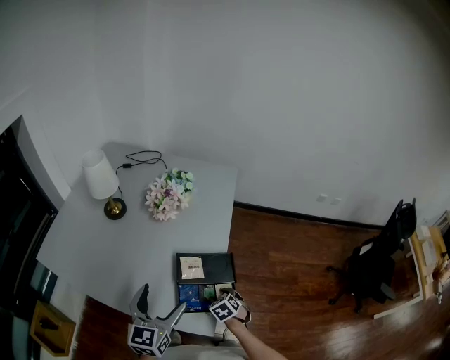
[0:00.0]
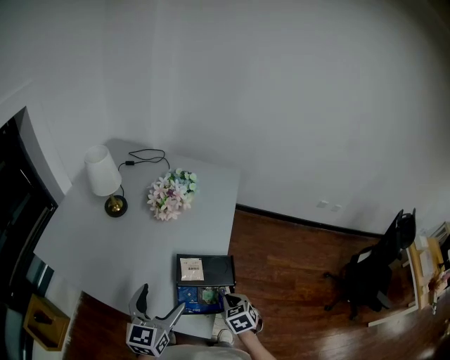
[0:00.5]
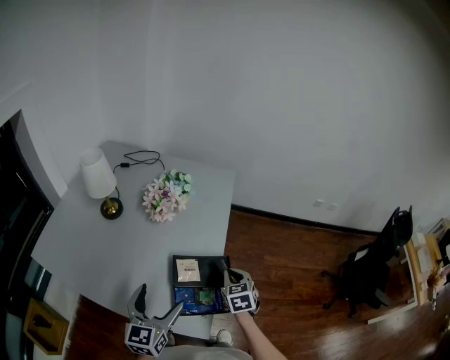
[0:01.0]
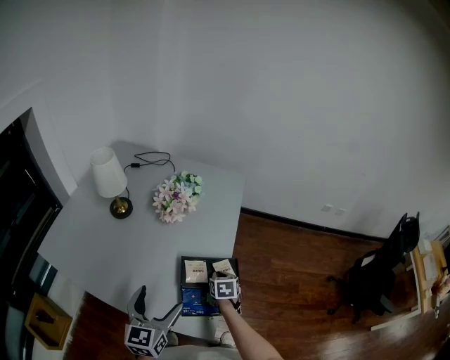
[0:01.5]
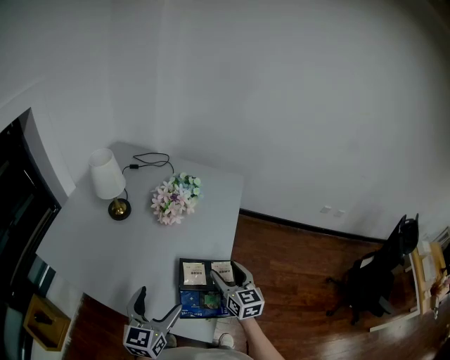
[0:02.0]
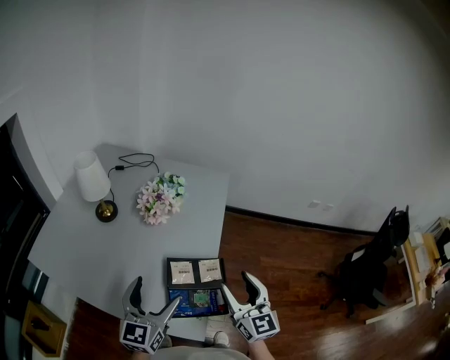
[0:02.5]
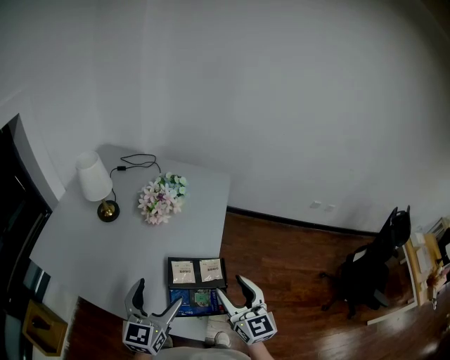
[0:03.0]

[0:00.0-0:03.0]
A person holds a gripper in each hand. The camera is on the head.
0:00.0 to 0:01.5: The right gripper goes roughly 10 cm forward, travels upward and back again, roughly 15 cm each way, rotates roughly 30 degrees, and closes.
0:01.5 to 0:03.0: The right gripper goes some 25 cm upward and backward, angles its fingers upward, by approximately 50 degrees, and opens its fingers, while the left gripper shifts by some 5 cm.

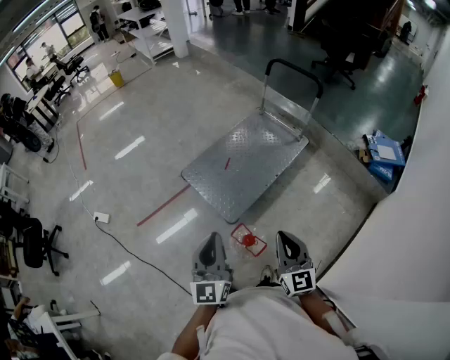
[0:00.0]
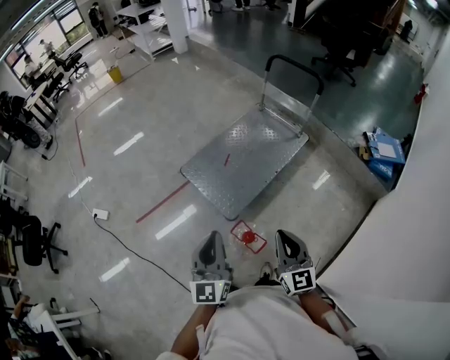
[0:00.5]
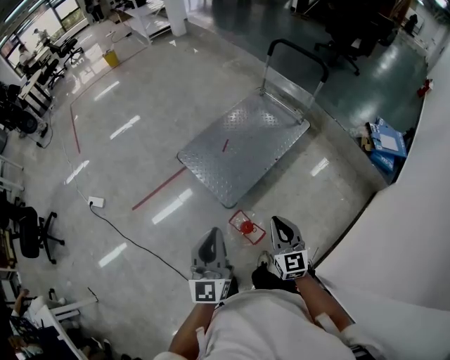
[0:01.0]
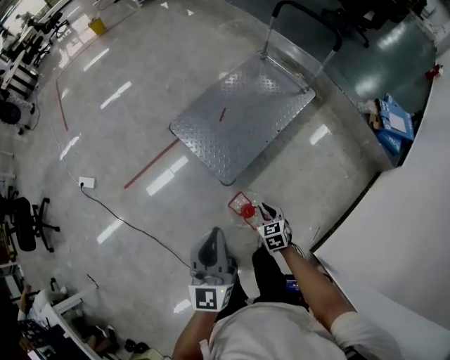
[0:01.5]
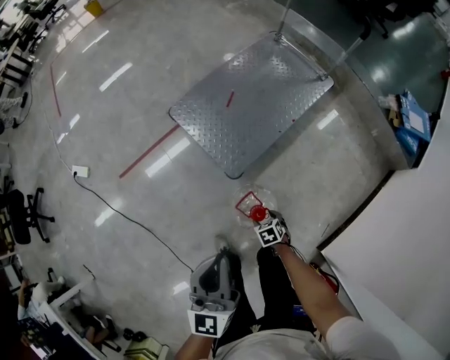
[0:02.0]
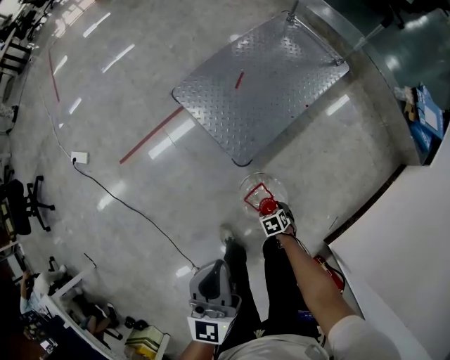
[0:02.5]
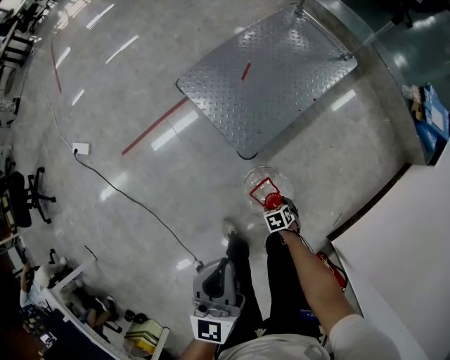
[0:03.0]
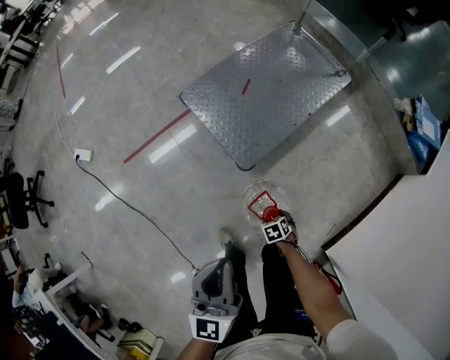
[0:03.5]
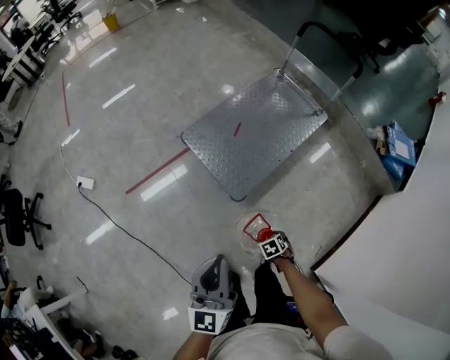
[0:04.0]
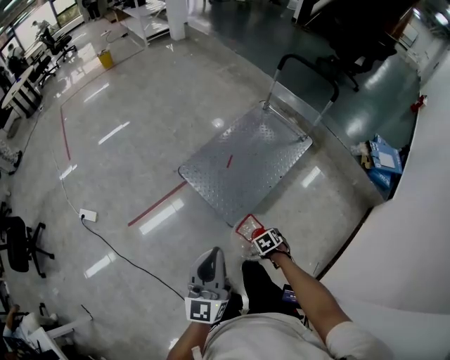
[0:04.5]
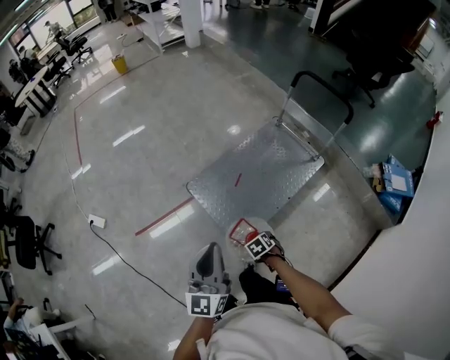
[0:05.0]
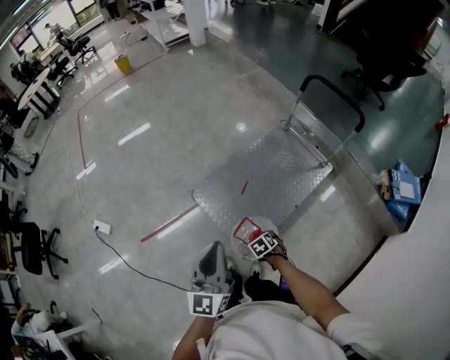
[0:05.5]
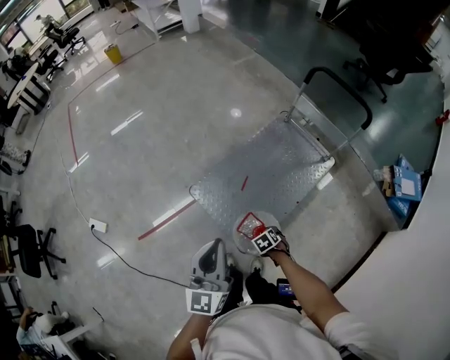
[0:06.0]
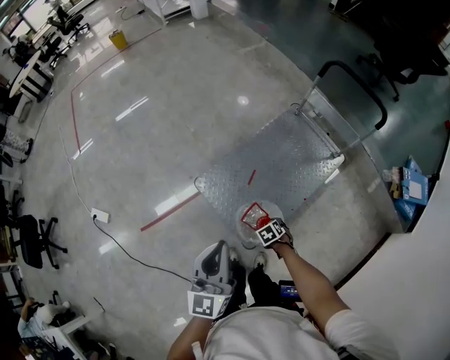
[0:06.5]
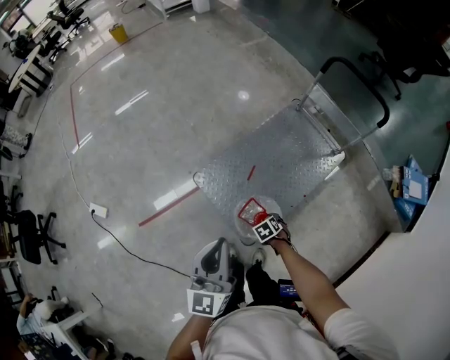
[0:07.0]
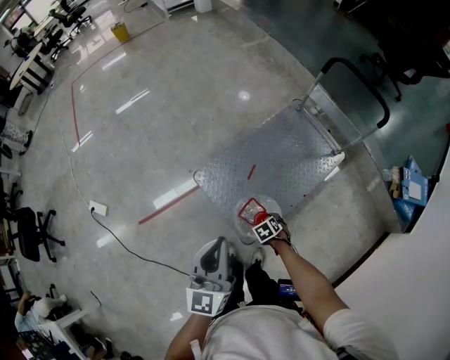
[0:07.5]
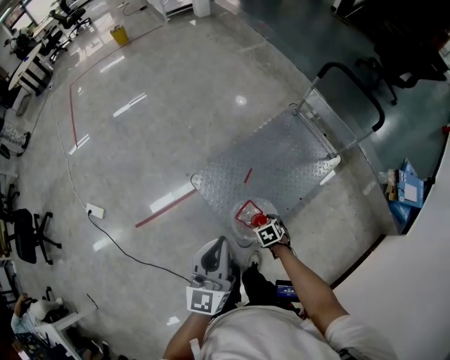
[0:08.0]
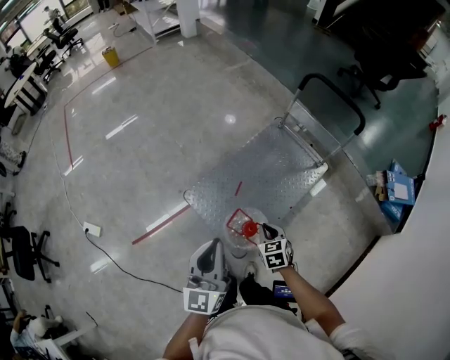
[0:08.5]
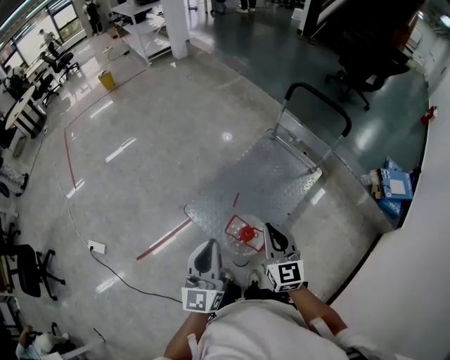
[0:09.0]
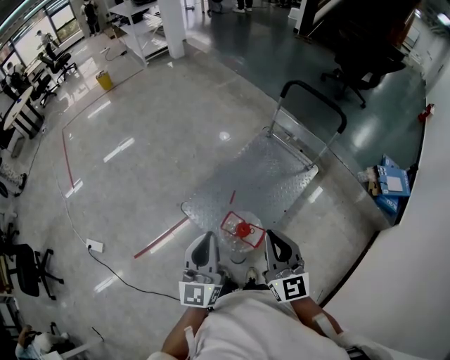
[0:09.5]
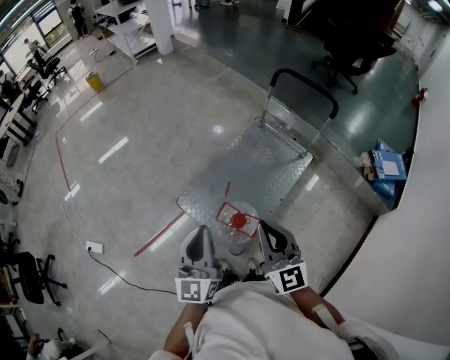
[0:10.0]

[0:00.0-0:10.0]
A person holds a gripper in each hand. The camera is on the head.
0:00.0 to 0:02.0: The right gripper is displaced downward by approximately 50 cm, angles its fingers downward, by about 70 degrees, and opens up. The left gripper is displaced downward by some 15 cm.
0:02.0 to 0:04.0: The right gripper moves upward, about 5 cm. Meanwhile the left gripper changes place by about 10 cm.
0:04.0 to 0:06.0: The right gripper shifts by roughly 35 cm. Meanwhile the left gripper changes place by about 35 cm.
0:06.0 to 0:08.0: The right gripper changes place by approximately 5 cm.
0:08.0 to 0:10.0: The right gripper shifts roughly 40 cm upward, tilts its fingers approximately 70 degrees upward, and closes its fingers; the left gripper goes roughly 5 cm upward.

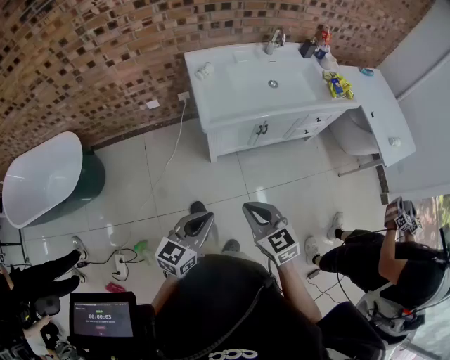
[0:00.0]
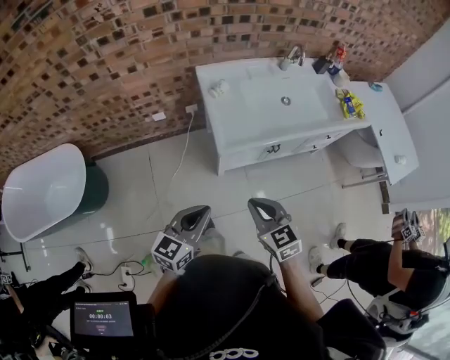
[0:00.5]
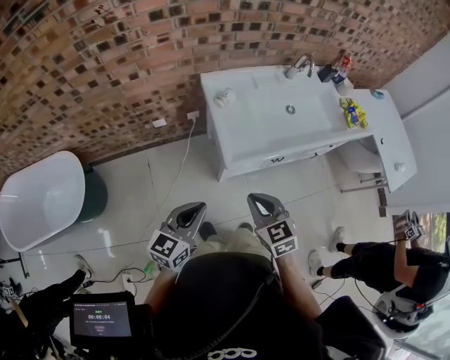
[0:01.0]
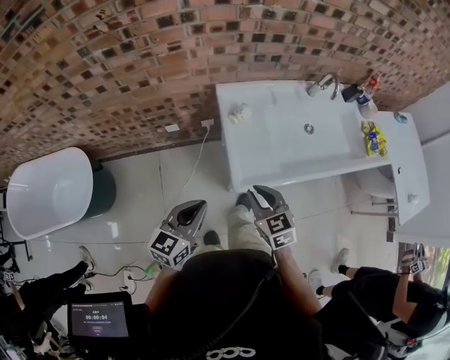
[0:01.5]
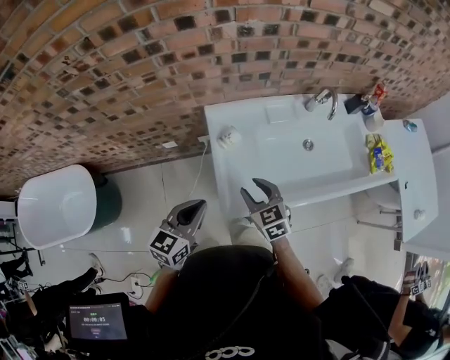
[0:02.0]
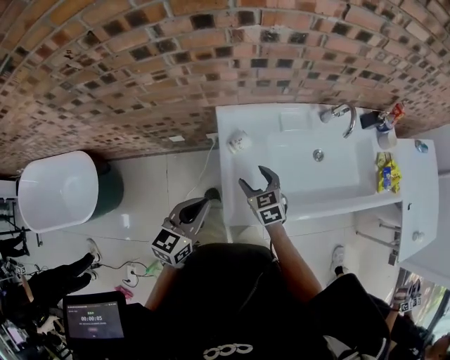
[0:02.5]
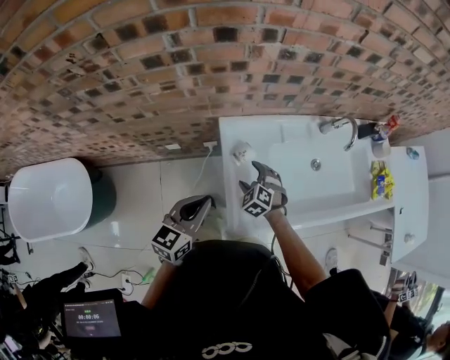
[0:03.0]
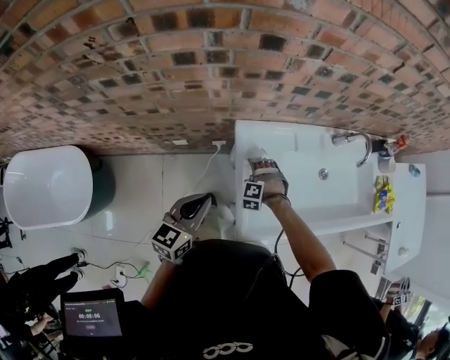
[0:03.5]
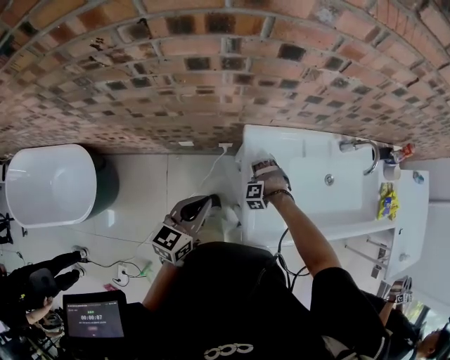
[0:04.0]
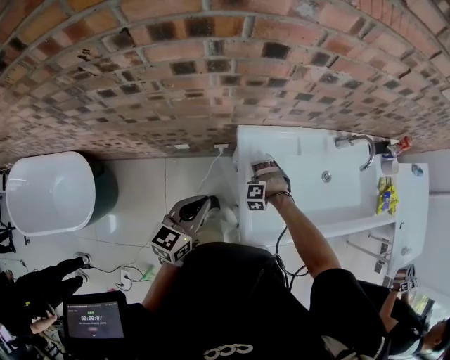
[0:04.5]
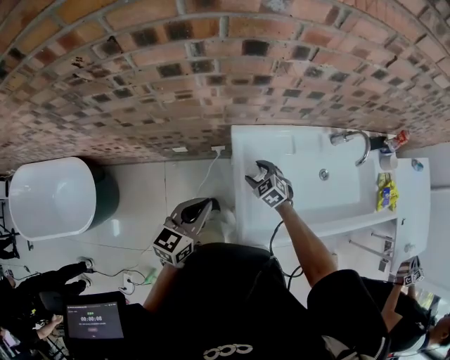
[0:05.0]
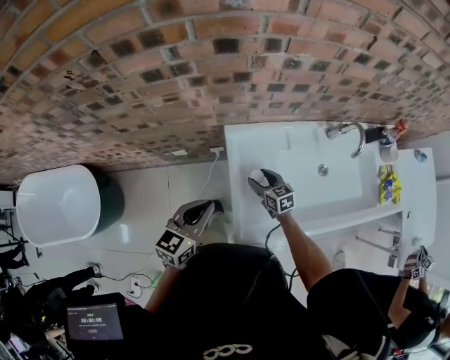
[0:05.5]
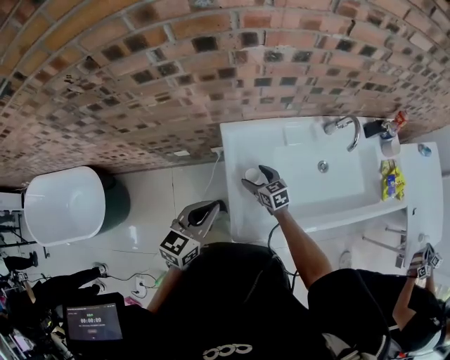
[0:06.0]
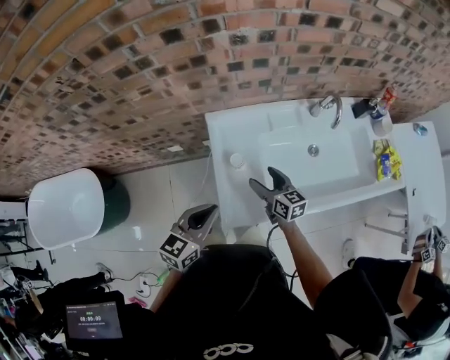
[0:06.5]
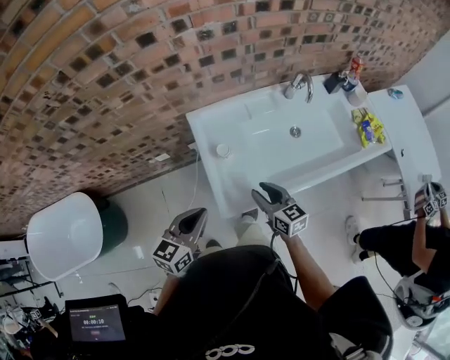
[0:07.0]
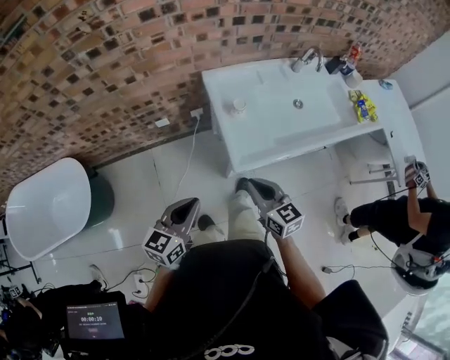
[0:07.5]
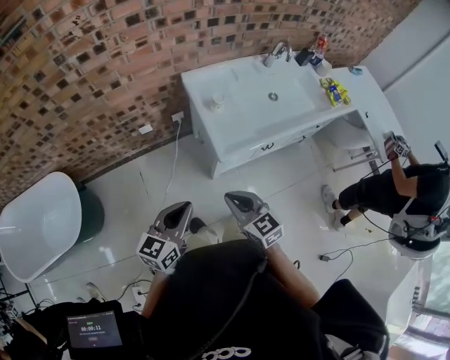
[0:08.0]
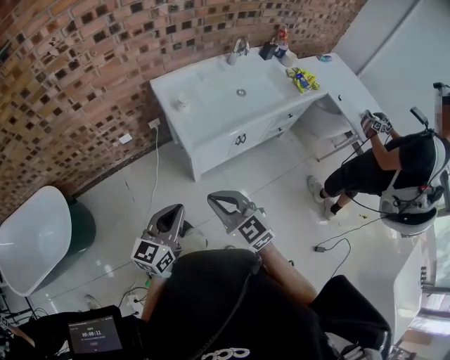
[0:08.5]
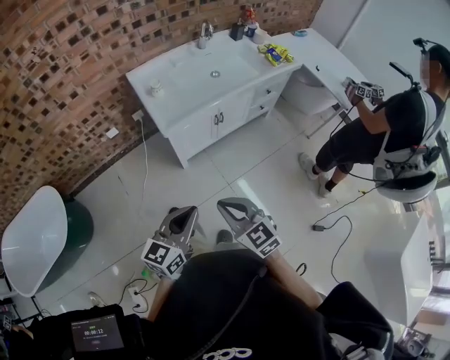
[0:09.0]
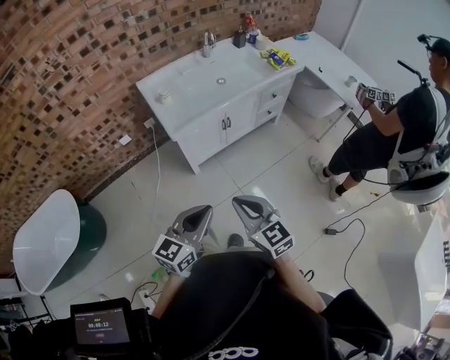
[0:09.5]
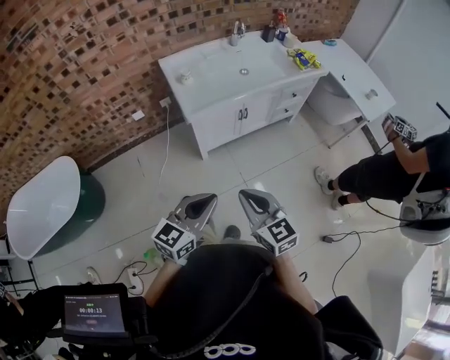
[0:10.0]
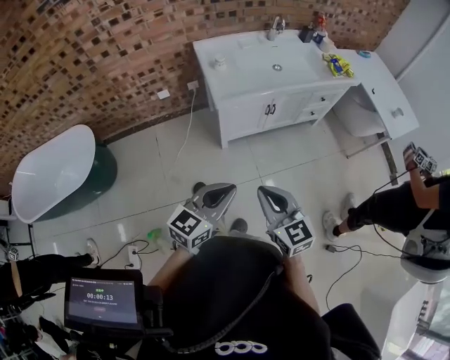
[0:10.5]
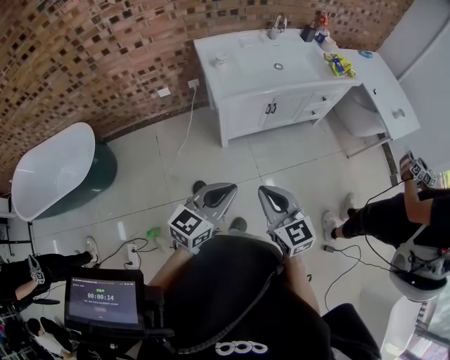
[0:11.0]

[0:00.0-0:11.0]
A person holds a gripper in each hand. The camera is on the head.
0:00.0 to 0:02.0: Both grippers are carried forward, some 50 cm. The right gripper opens up.
0:02.0 to 0:03.5: The right gripper is displaced downward, forward and to the left by approximately 25 cm, rotates around the line of its fingers by roughly 70 degrees, counterclockwise from behind, and opens; the left gripper goes about 15 cm to the left and forward.
0:03.5 to 0:05.5: The left gripper moves about 5 cm. Meanwhile the right gripper shifts by roughly 5 cm, and rotates around the line of its fingers by approximately 80 degrees, clockwise from behind.
0:05.5 to 0:07.5: The right gripper goes approximately 40 cm backward and upward, turns by approximately 20 degrees, and closes. The left gripper moves backward, some 30 cm.
0:07.5 to 0:09.0: The right gripper travels backward by approximately 35 cm; the left gripper goes about 35 cm backward and to the right.
0:09.0 to 0:11.0: The right gripper moves approximately 5 cm.

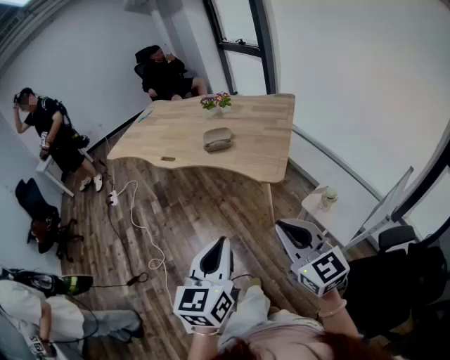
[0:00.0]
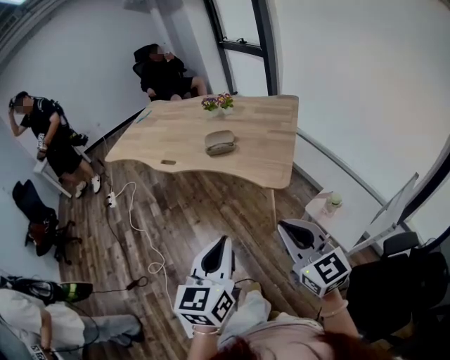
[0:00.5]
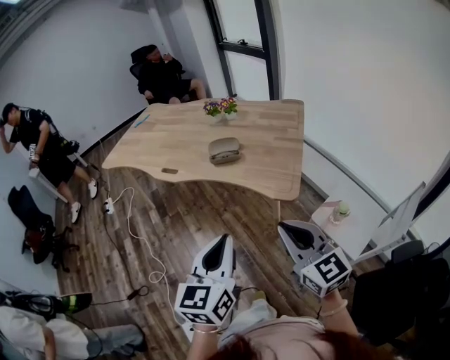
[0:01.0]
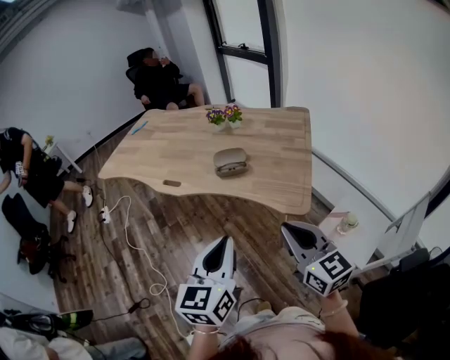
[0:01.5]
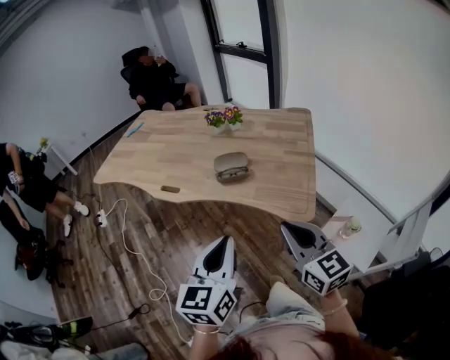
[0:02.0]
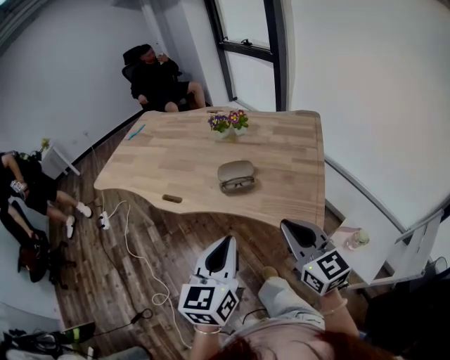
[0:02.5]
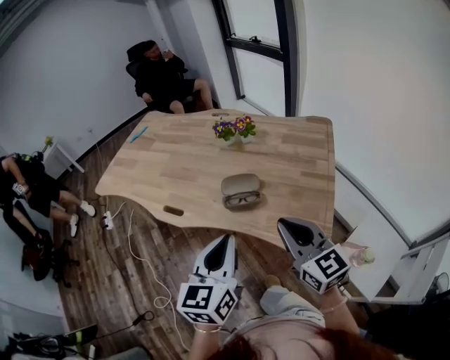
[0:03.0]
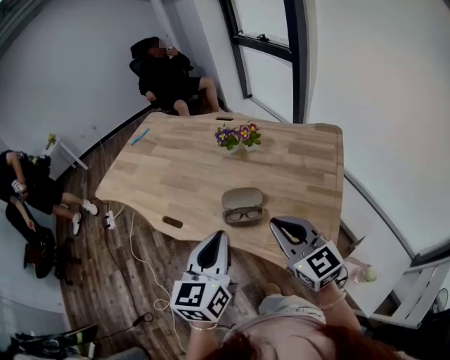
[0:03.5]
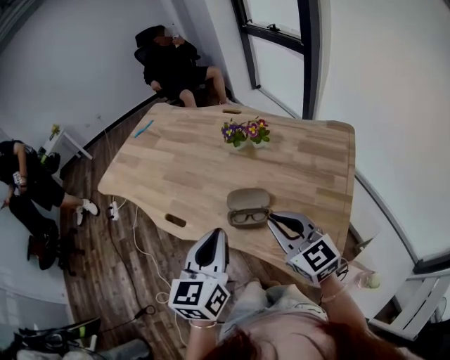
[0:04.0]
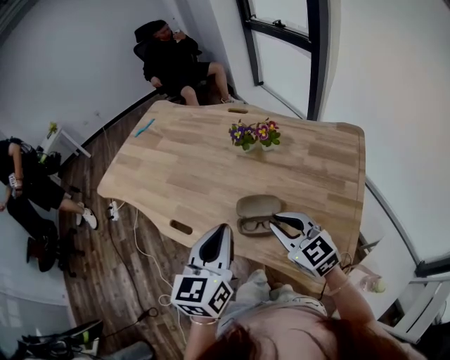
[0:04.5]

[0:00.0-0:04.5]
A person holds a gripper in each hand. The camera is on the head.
0:00.0 to 0:02.0: Both grippers travel together forward, roughly 25 cm.
0:02.0 to 0:04.5: Both grippers travel together forward, some 35 cm. The right gripper rotates approximately 30 degrees.
